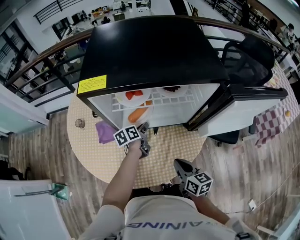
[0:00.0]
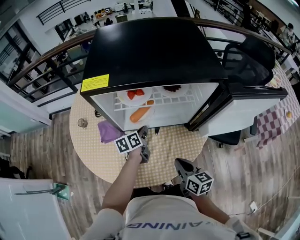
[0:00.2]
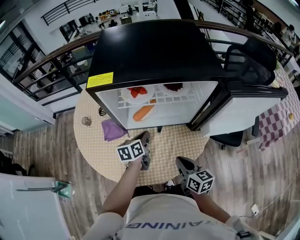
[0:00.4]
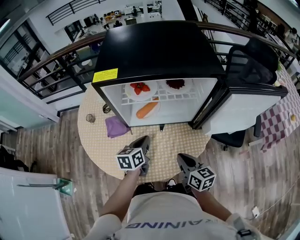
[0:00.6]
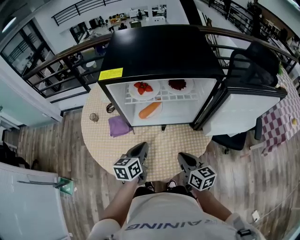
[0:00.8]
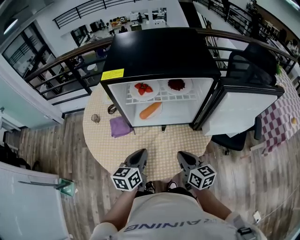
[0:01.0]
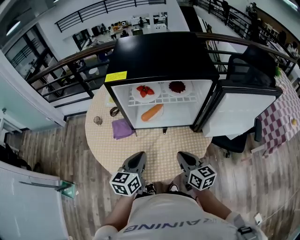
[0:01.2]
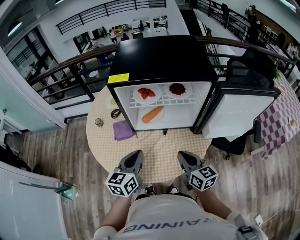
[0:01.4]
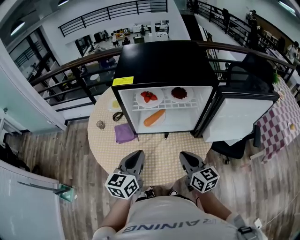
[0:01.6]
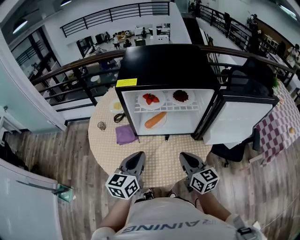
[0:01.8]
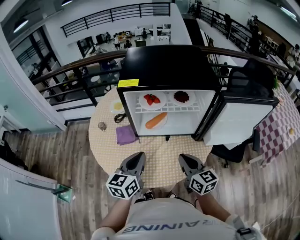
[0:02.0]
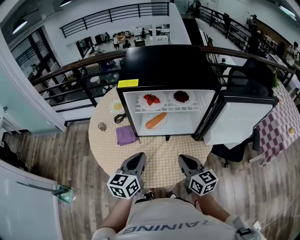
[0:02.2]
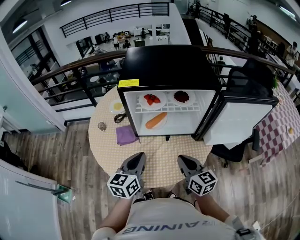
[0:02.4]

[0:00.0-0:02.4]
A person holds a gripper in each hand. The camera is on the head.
0.0 to 1.2 s: The right gripper goes some 5 cm upward.
1.2 to 2.4 s: The right gripper moves approximately 5 cm.

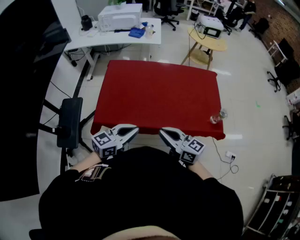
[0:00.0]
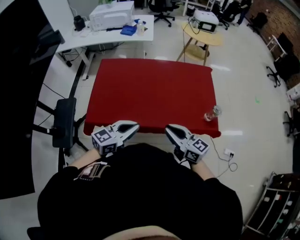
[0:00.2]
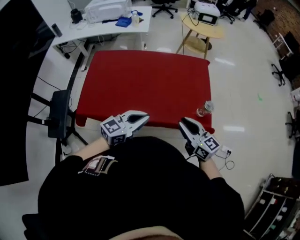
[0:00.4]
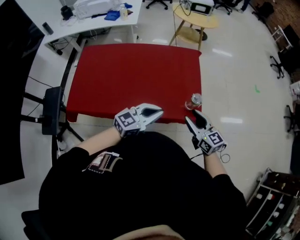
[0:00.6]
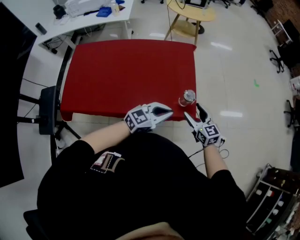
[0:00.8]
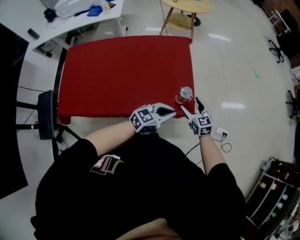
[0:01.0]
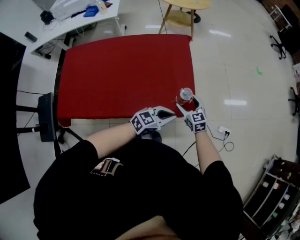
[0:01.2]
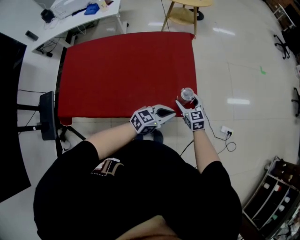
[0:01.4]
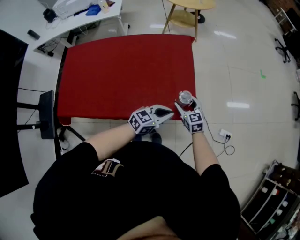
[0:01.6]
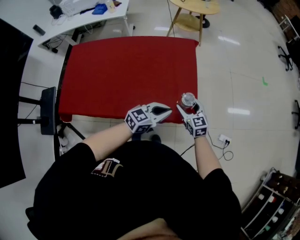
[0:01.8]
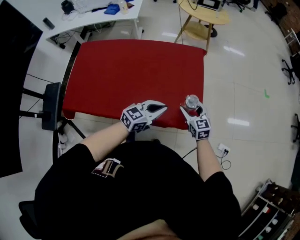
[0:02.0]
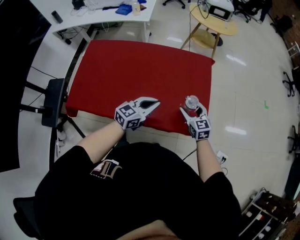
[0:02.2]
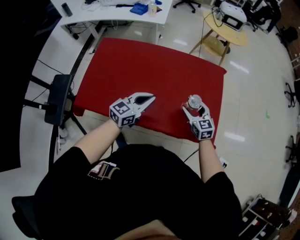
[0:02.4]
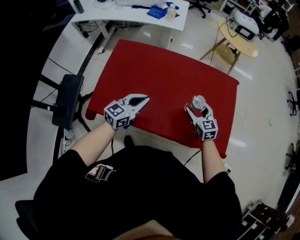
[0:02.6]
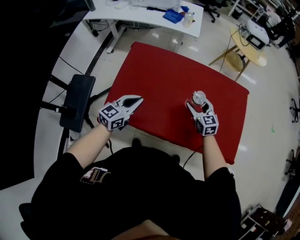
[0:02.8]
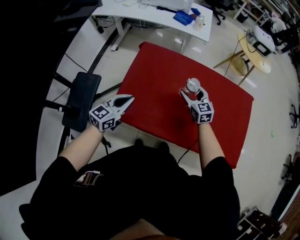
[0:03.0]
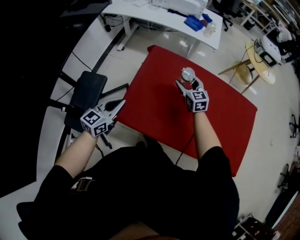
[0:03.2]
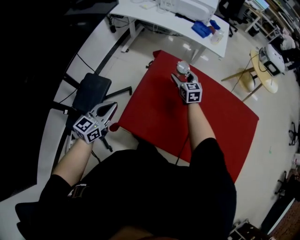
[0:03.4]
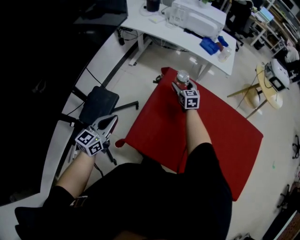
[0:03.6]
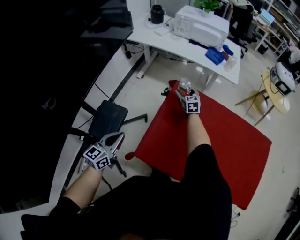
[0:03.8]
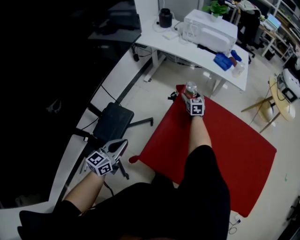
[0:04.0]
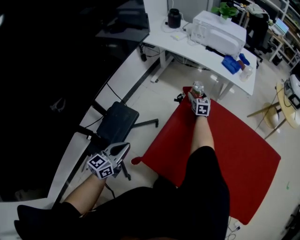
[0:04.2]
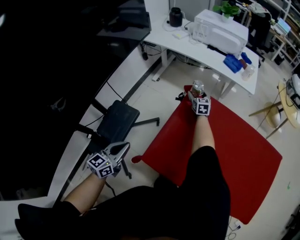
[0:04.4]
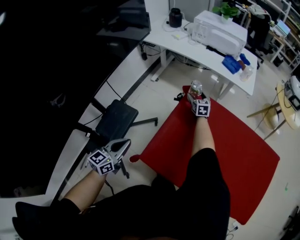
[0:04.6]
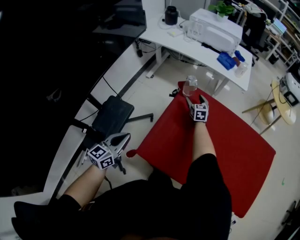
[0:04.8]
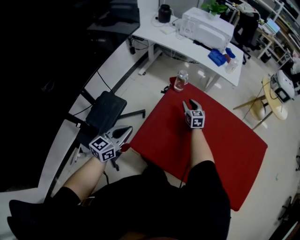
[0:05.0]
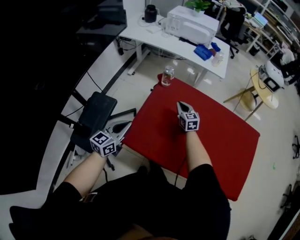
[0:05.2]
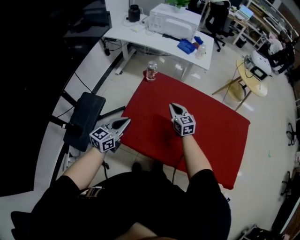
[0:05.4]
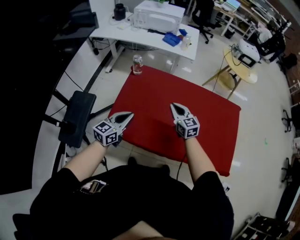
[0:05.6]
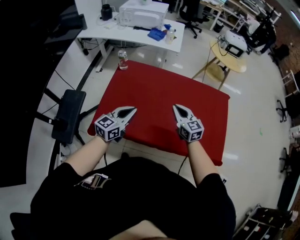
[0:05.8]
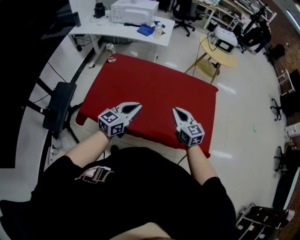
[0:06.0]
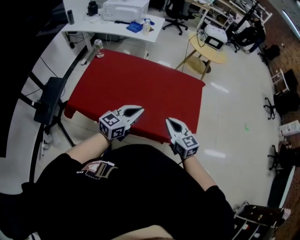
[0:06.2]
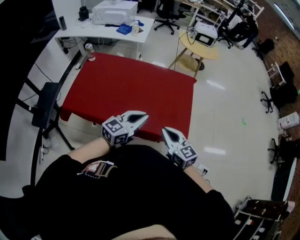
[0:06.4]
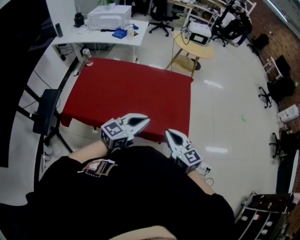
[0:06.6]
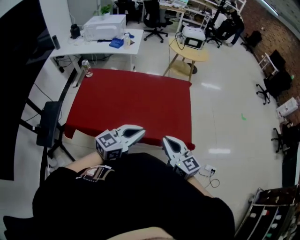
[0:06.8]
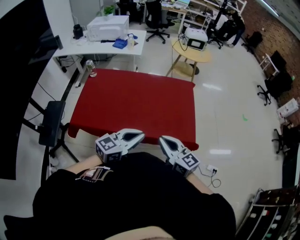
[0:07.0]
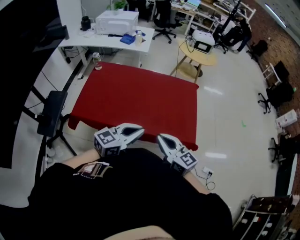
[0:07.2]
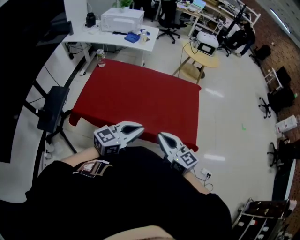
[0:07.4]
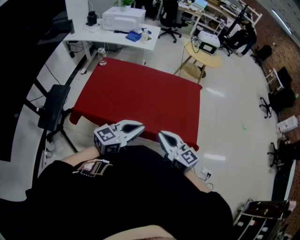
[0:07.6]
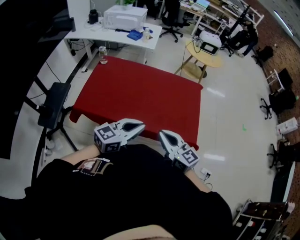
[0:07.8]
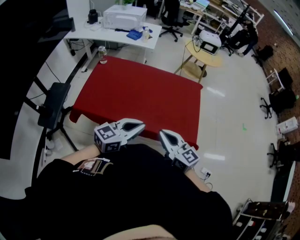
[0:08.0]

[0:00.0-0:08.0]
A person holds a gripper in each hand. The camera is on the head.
0.0 to 1.6 s: Both grippers are carried about 50 cm. The right gripper turns by some 50 degrees, and opens.
1.6 to 3.2 s: Both grippers are carried approximately 70 cm. The left gripper swivels some 50 degrees, while the right gripper swivels some 20 degrees.
3.2 to 4.8 s: The right gripper heads forward, to the left and downward, covering some 25 cm; the left gripper travels to the left by roughly 10 cm.
4.8 to 6.4 s: Both grippers are carried to the right and backward, about 80 cm. The left gripper turns by some 40 degrees; the right gripper closes.
6.4 to 8.0 s: The right gripper travels to the left by approximately 10 cm; the left gripper heads to the left and backward, covering about 10 cm.

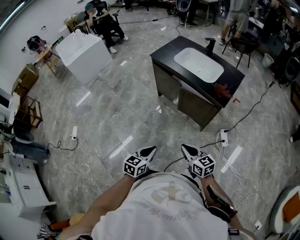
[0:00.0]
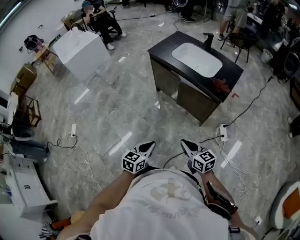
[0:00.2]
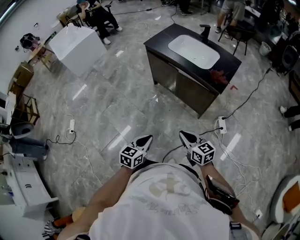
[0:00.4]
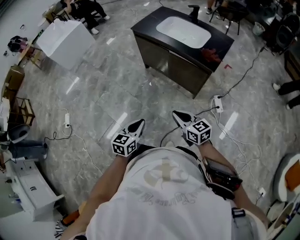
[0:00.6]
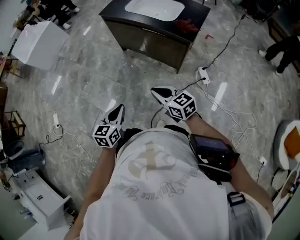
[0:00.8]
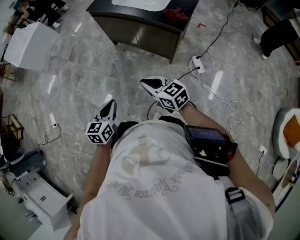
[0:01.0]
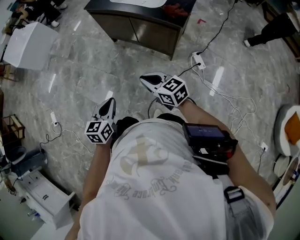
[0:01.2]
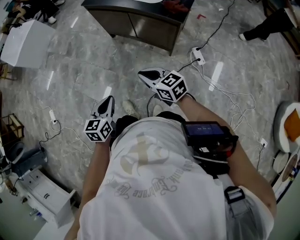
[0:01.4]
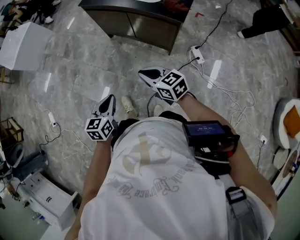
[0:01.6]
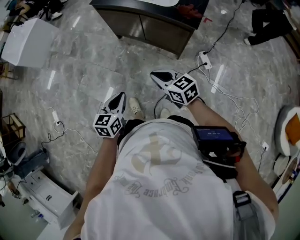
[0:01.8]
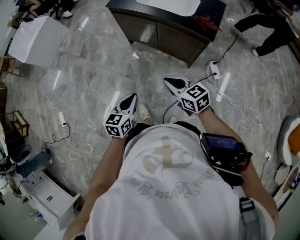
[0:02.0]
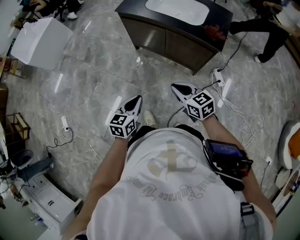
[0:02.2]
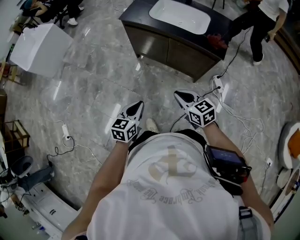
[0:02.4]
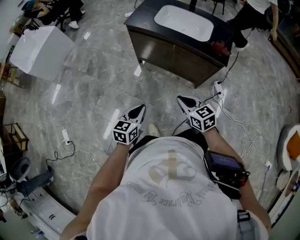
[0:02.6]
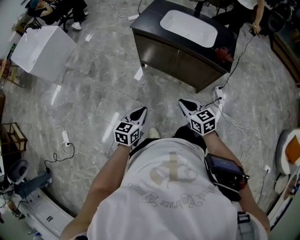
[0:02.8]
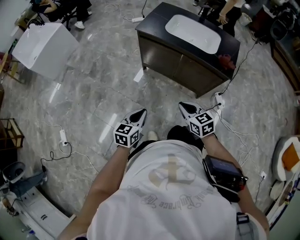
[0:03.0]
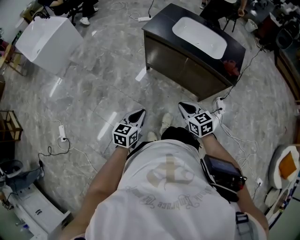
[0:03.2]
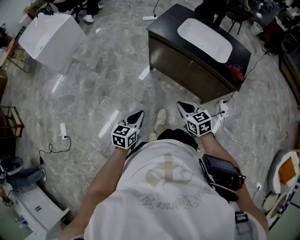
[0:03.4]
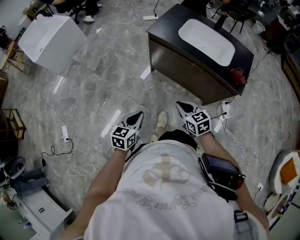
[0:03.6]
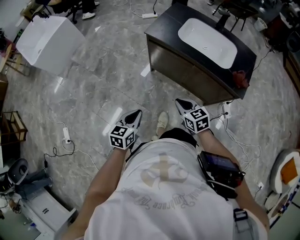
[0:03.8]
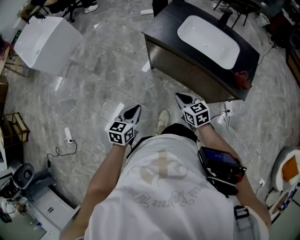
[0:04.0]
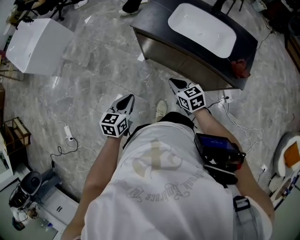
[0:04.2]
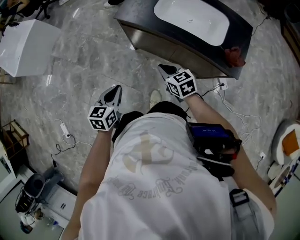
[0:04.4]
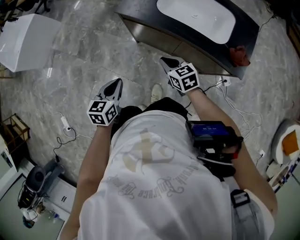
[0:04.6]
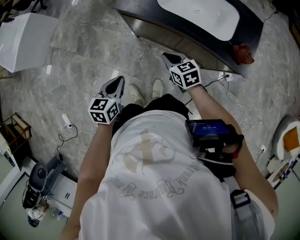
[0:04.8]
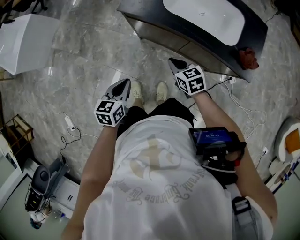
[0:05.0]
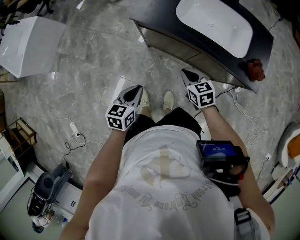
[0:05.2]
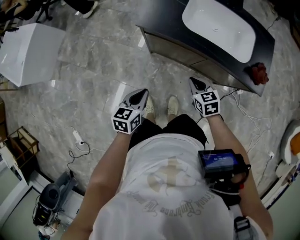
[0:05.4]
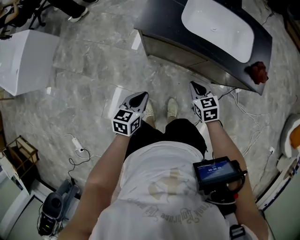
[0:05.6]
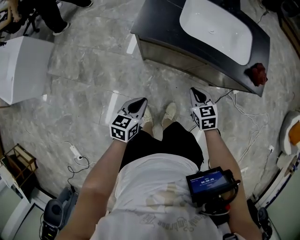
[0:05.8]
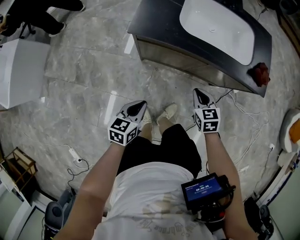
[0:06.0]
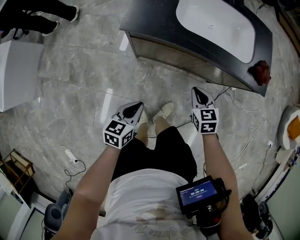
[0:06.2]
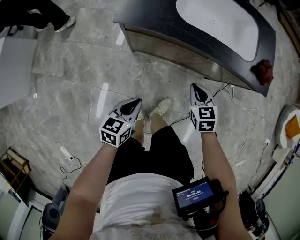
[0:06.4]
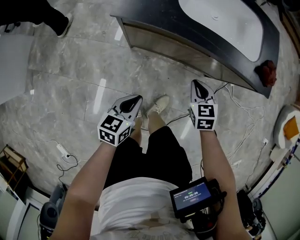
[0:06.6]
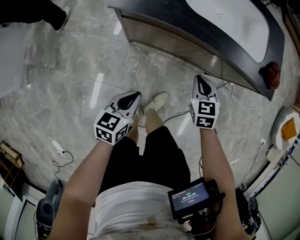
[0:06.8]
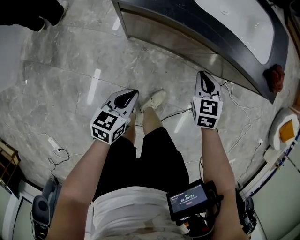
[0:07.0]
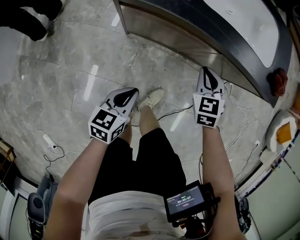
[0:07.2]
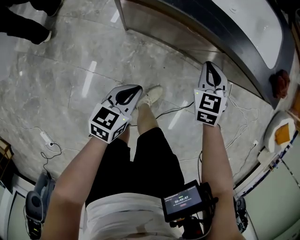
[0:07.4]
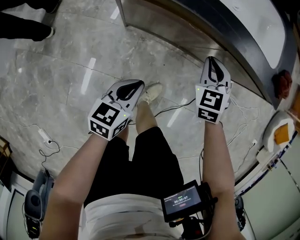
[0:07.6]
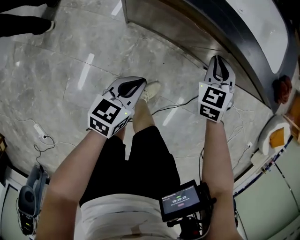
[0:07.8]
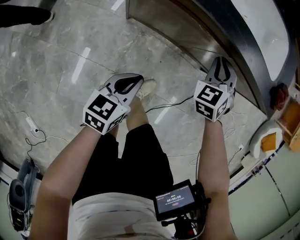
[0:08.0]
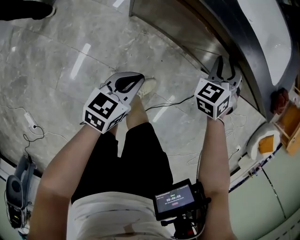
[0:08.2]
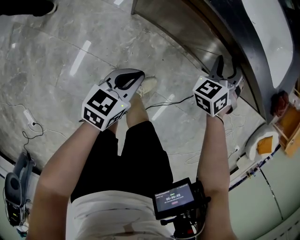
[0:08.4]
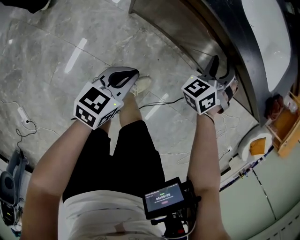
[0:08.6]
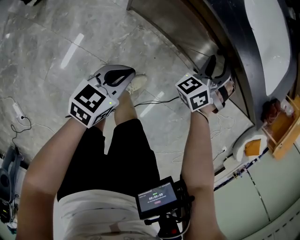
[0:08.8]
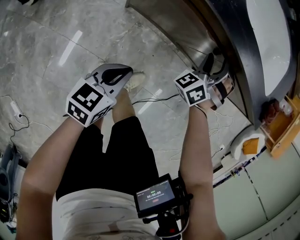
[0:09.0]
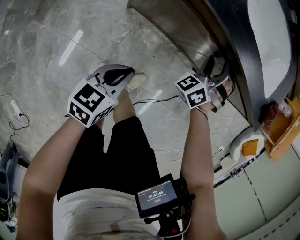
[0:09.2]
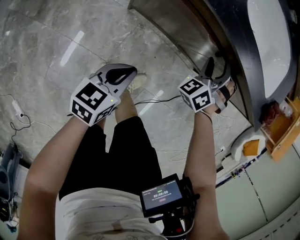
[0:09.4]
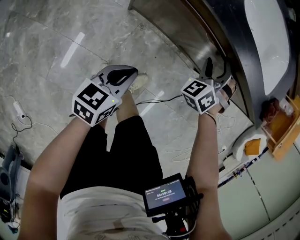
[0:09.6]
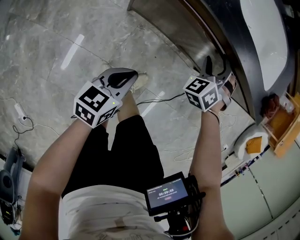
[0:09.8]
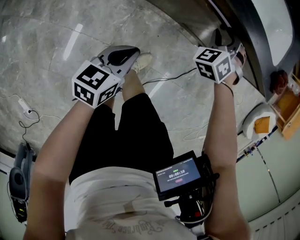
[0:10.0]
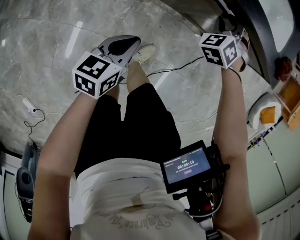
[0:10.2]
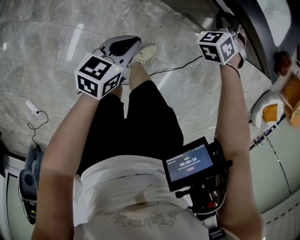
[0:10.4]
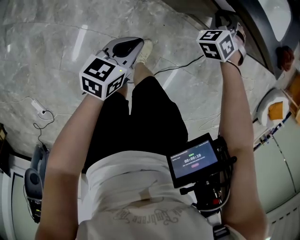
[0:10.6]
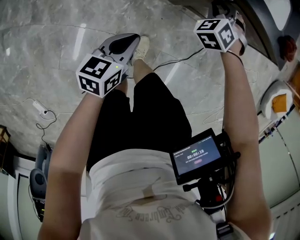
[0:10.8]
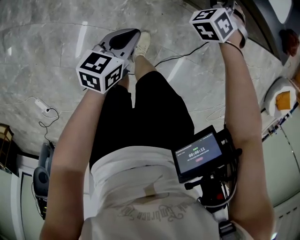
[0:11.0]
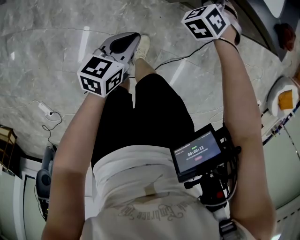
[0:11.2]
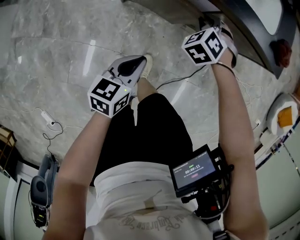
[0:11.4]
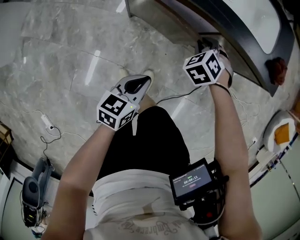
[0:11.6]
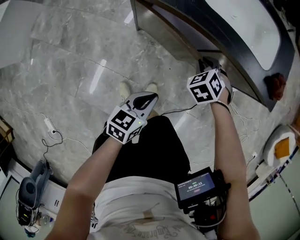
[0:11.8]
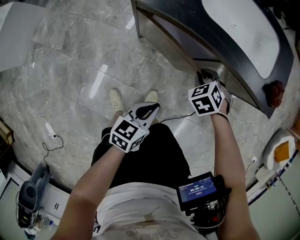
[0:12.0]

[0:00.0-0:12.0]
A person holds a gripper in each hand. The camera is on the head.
0.0 to 1.6 s: The right gripper heads forward, covering roughly 5 cm.
1.6 to 3.0 s: The grippers both shift to the left and forward by some 20 cm.
3.0 to 4.4 s: Both grippers travel together forward, approximately 25 cm.
4.4 to 6.0 s: The two grippers go roughly 10 cm downward. The left gripper changes its angle by approximately 20 degrees. The right gripper rotates approximately 30 degrees.
6.0 to 7.6 s: The right gripper travels forward and downward by some 15 cm, and rotates about 30 degrees. The left gripper shifts about 15 cm downward, to the right and forward.
7.6 to 9.0 s: The right gripper heads forward, covering about 5 cm, rolls counterclockwise, seen from behind, by approximately 40 degrees, and opens up.
9.0 to 10.4 s: The left gripper moves about 5 cm; the right gripper turns by some 20 degrees, and closes.
10.4 to 12.0 s: The right gripper moves backward, approximately 5 cm, and changes its angle by some 30 degrees. The left gripper is displaced to the right by approximately 10 cm.

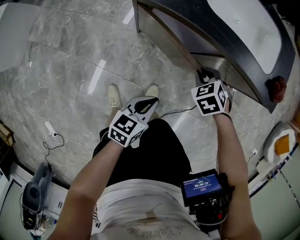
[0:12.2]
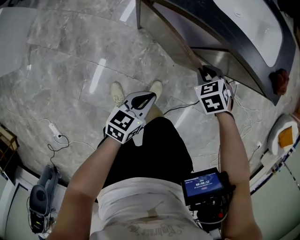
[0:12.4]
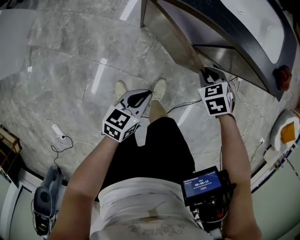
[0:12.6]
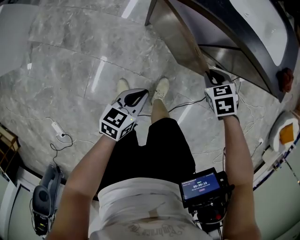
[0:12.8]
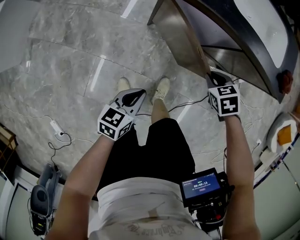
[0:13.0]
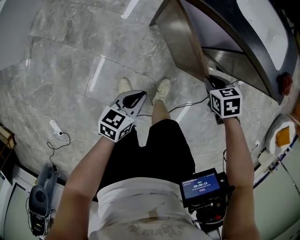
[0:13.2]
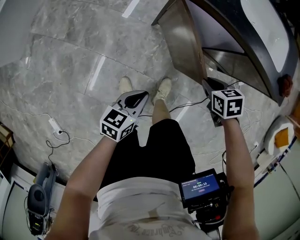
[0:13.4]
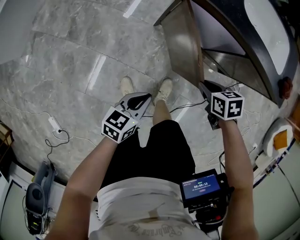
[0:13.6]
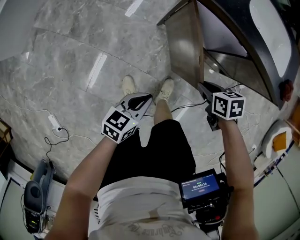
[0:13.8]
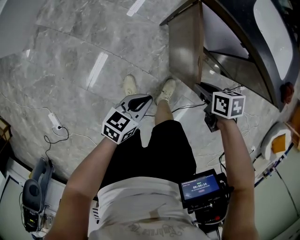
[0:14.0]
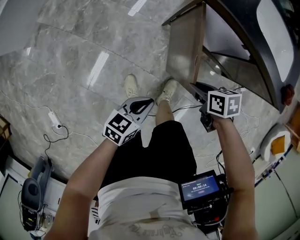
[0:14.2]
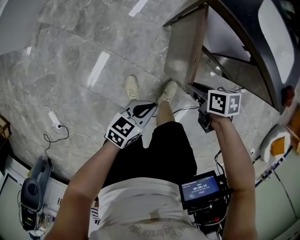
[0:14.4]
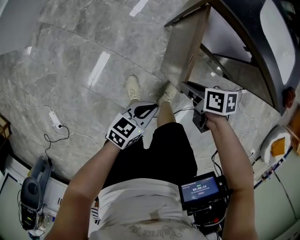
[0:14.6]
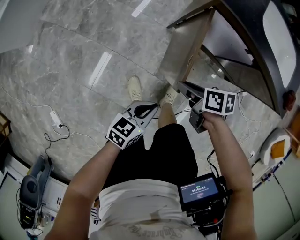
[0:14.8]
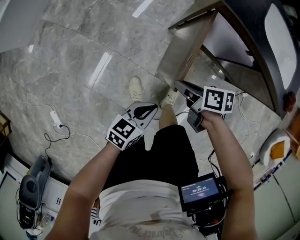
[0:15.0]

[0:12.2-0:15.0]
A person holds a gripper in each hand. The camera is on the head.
12.2 to 13.6 s: The left gripper changes place by some 20 cm; the right gripper shifts by roughly 15 cm, and swivels some 40 degrees.
13.6 to 15.0 s: The left gripper changes place by approximately 5 cm; the right gripper shifts by some 20 cm, and swivels roughly 30 degrees.
